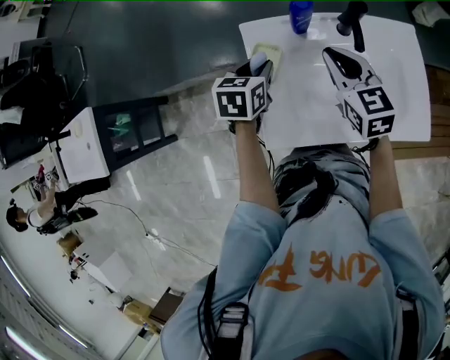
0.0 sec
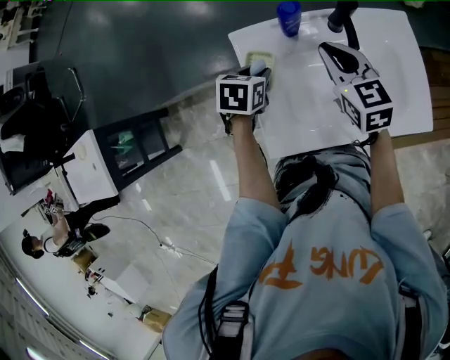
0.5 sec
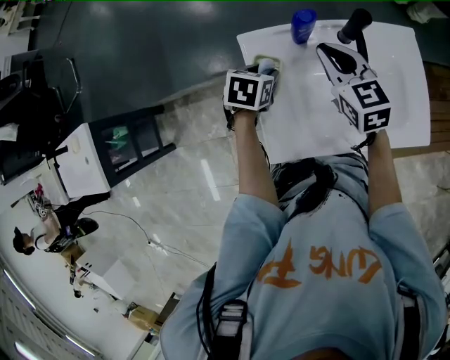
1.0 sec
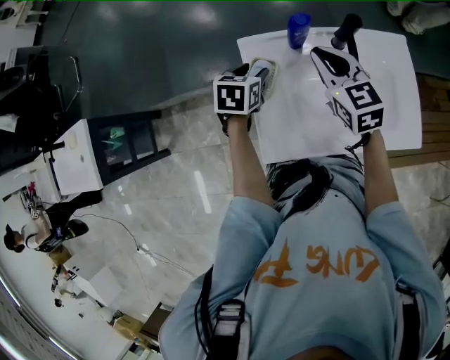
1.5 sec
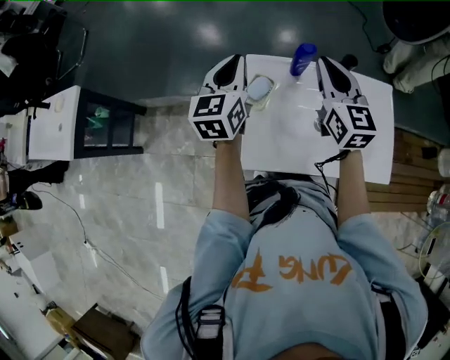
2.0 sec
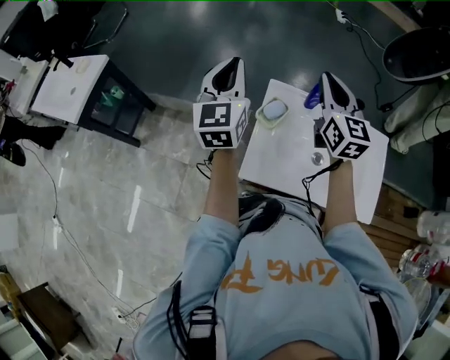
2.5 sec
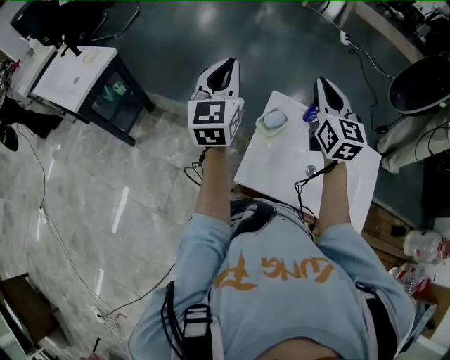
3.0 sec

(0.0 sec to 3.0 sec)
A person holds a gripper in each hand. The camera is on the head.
0.0 sec - 1.5 sec: The left gripper opens its fingers.
1.5 sec - 3.0 sec: The left gripper is displaced upward by about 30 cm, tilts its fingers roughly 50 degrees upward, and closes; the right gripper shifts roughly 15 cm upward, and changes its angle by some 20 degrees.

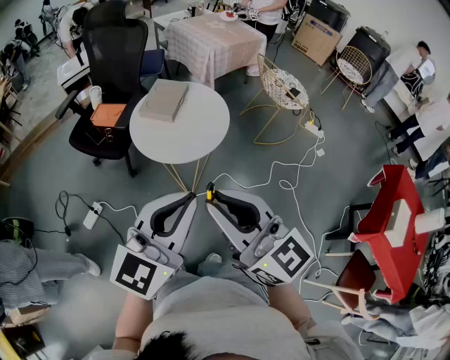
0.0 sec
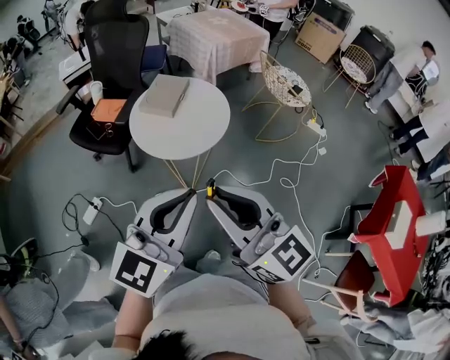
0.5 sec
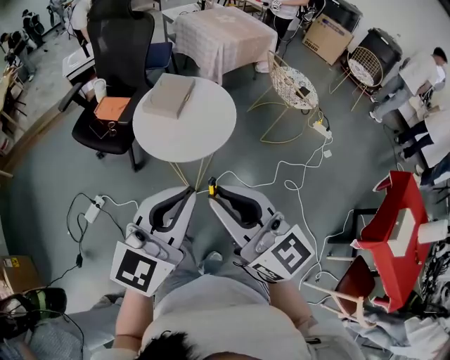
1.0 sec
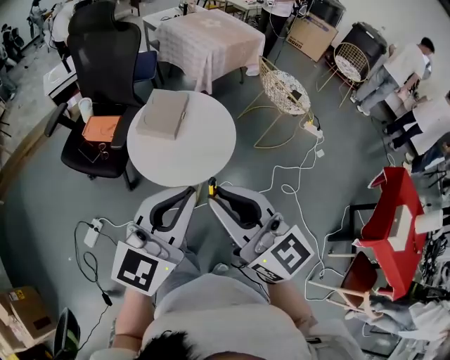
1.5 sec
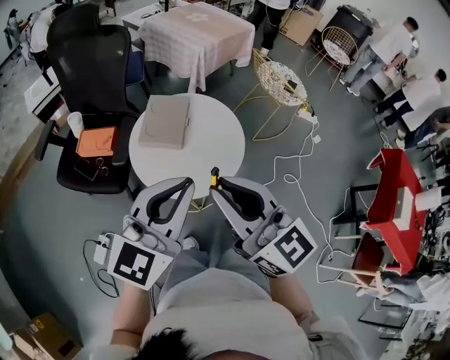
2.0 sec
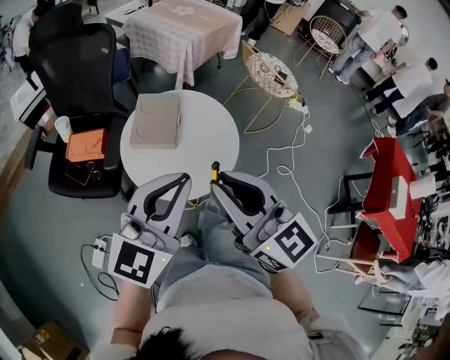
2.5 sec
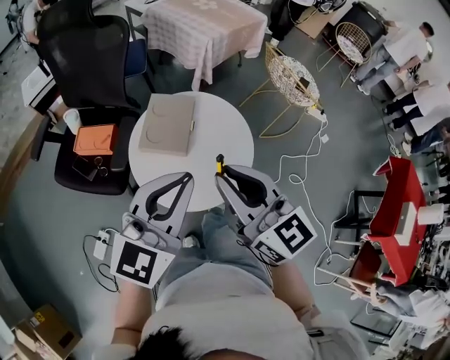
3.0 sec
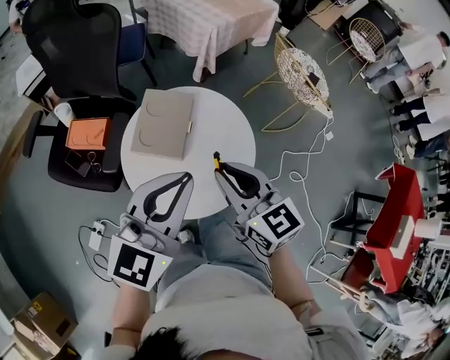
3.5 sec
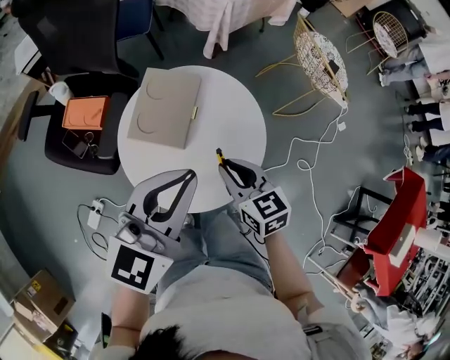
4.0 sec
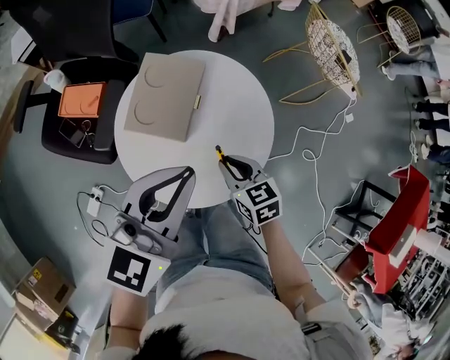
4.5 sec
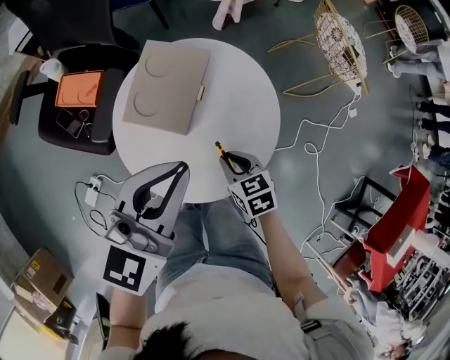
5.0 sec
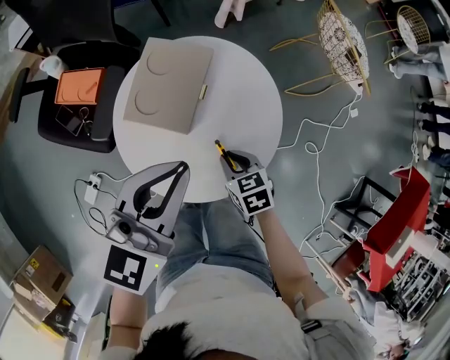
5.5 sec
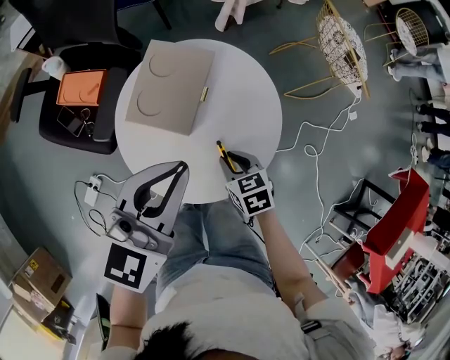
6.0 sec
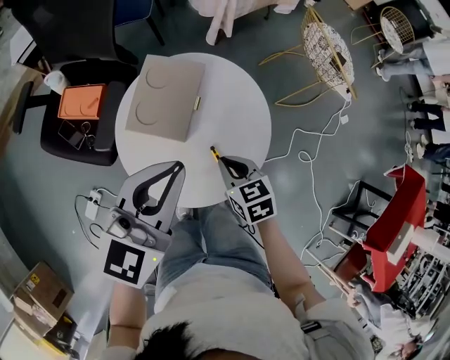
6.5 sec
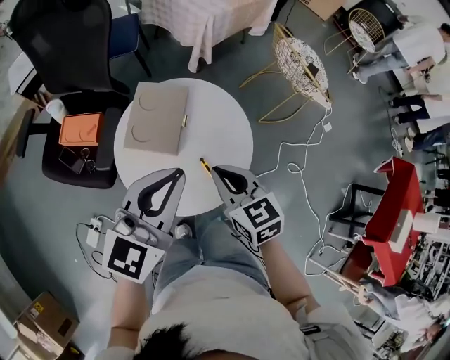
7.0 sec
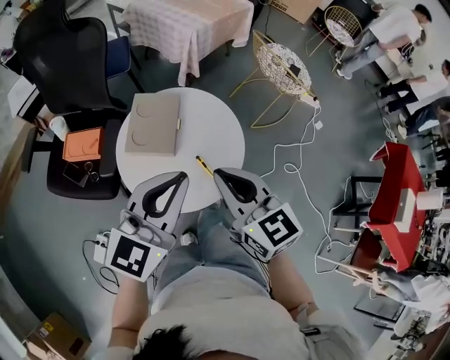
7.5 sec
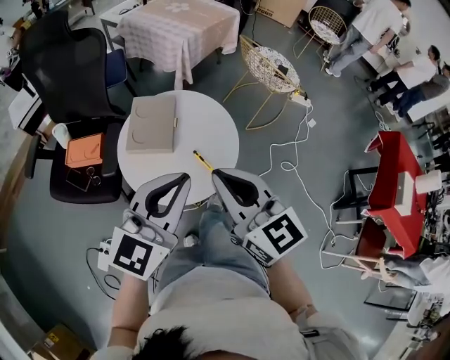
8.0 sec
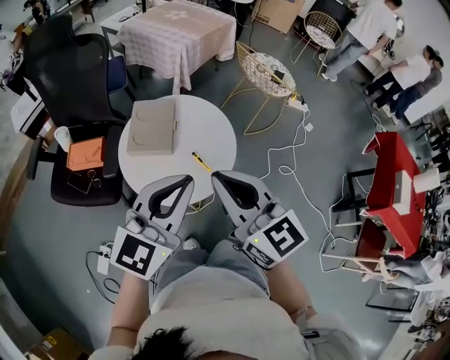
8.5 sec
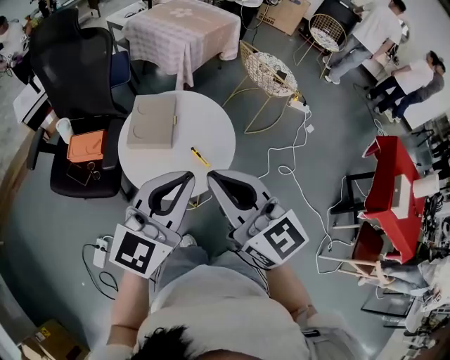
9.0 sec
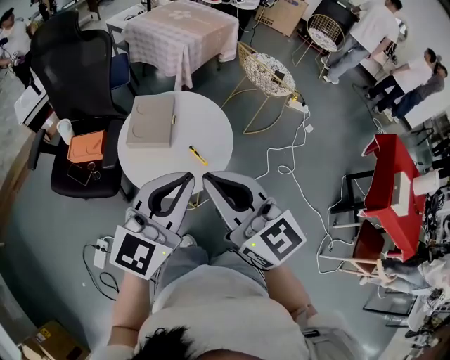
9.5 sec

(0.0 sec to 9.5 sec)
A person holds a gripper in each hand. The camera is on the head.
0.0 sec - 2.0 sec: Both grippers travel together forward and to the left, roughly 25 cm.
2.0 sec - 4.0 sec: The left gripper moves forward and downward, roughly 20 cm. Meanwhile the right gripper travels downward and forward by roughly 35 cm, and tilts its fingers some 30 degrees downward.
4.0 sec - 5.5 sec: The right gripper moves downward, approximately 15 cm, and changes its angle by roughly 20 degrees; the left gripper ends up some 5 cm from where it was.
5.5 sec - 7.5 sec: The right gripper is displaced upward by about 30 cm, and tips its fingers upward by about 40 degrees; the left gripper heads backward and upward, covering some 10 cm.
7.5 sec - 9.5 sec: The right gripper moves backward and upward, some 15 cm. Meanwhile the left gripper goes about 10 cm backward.

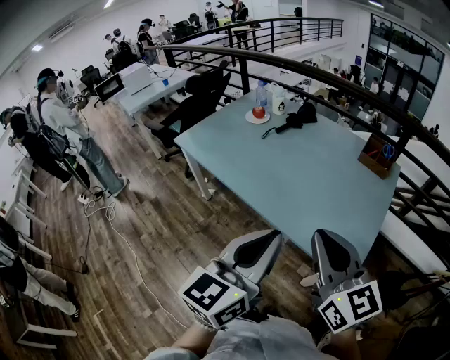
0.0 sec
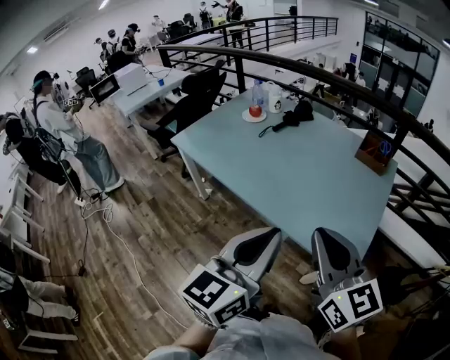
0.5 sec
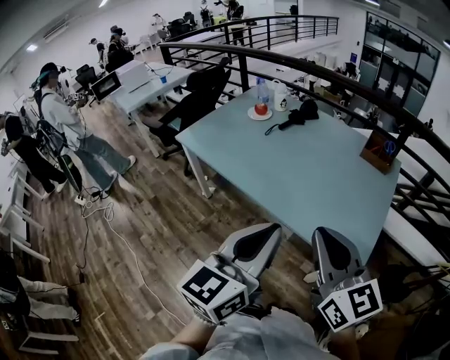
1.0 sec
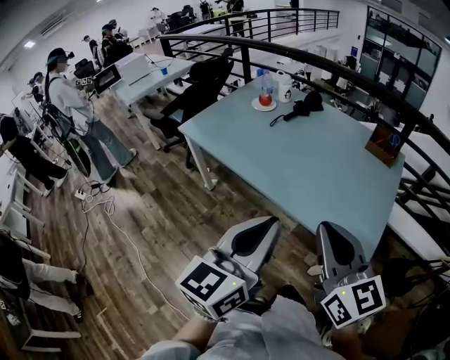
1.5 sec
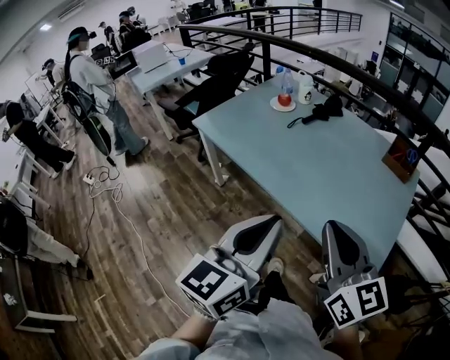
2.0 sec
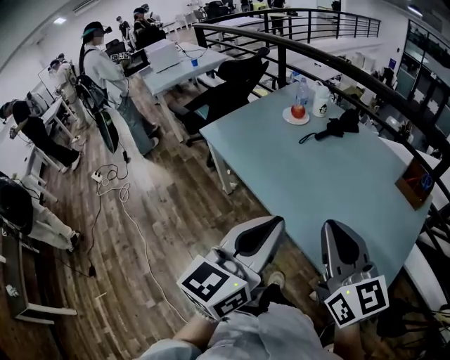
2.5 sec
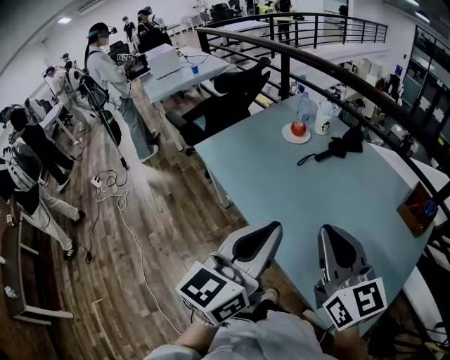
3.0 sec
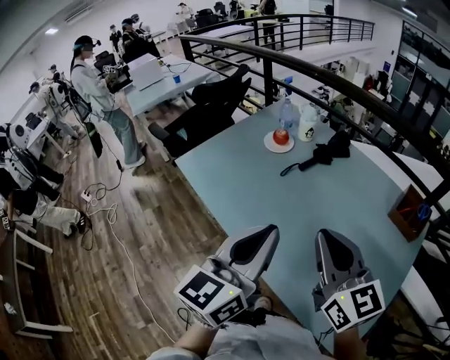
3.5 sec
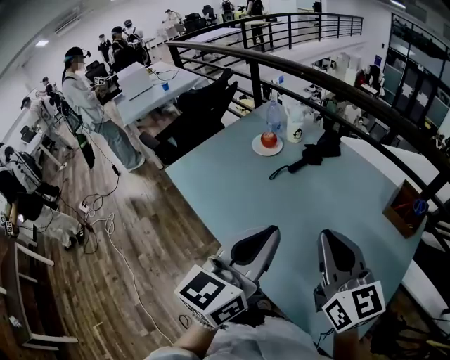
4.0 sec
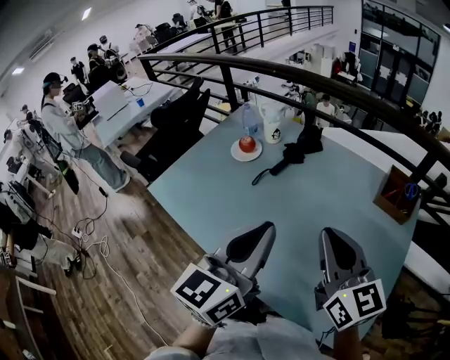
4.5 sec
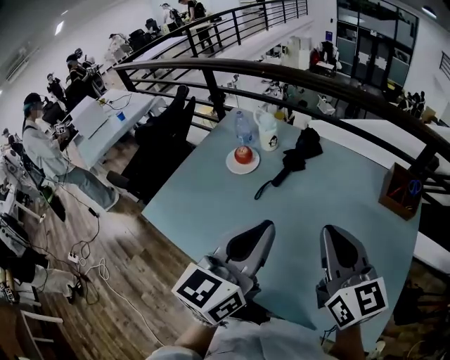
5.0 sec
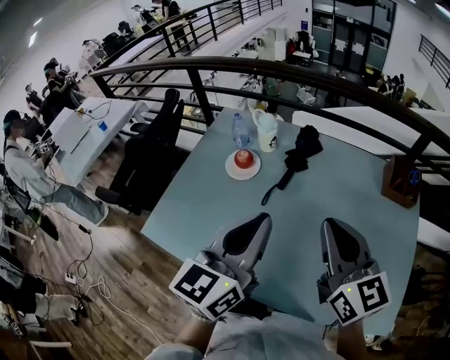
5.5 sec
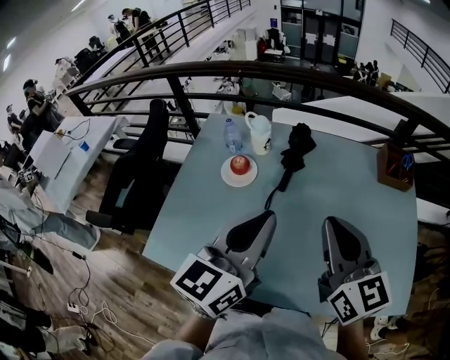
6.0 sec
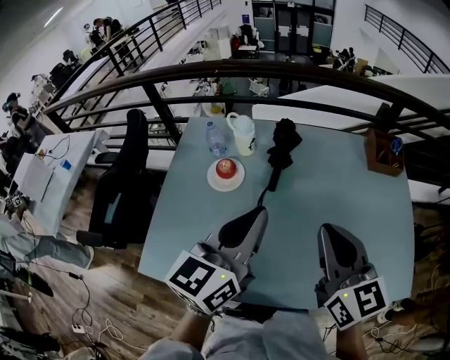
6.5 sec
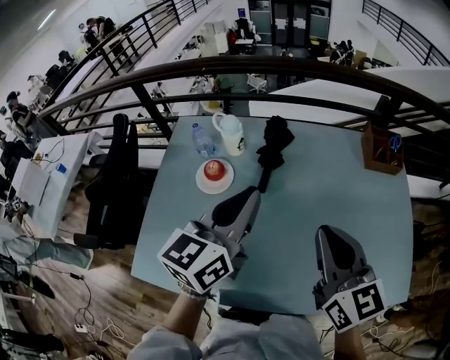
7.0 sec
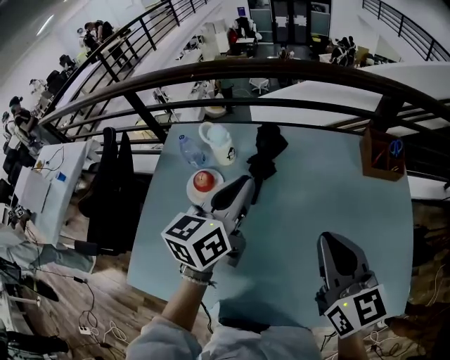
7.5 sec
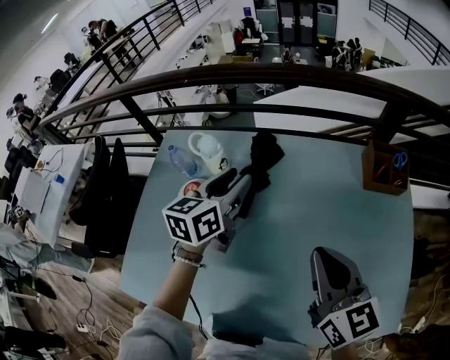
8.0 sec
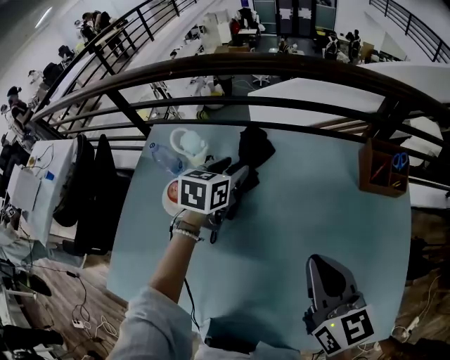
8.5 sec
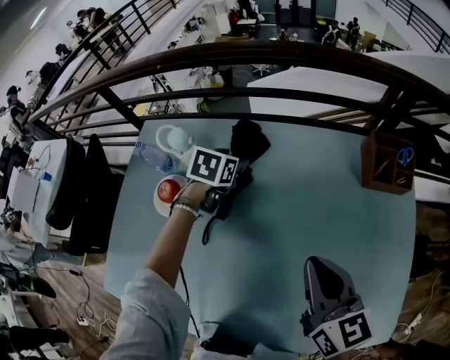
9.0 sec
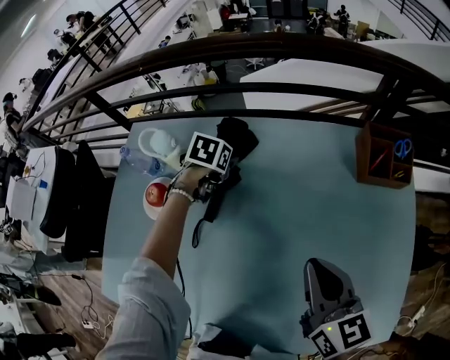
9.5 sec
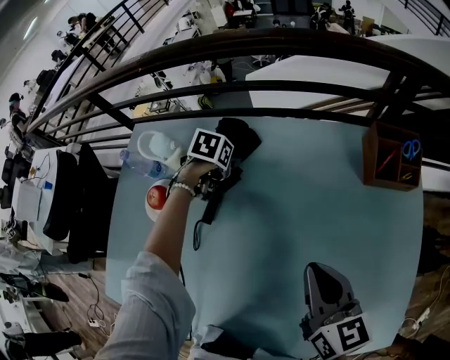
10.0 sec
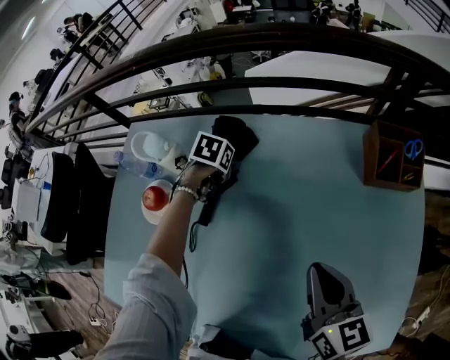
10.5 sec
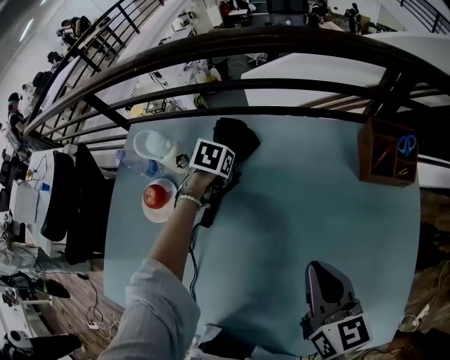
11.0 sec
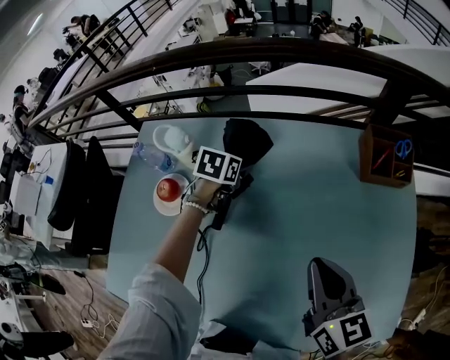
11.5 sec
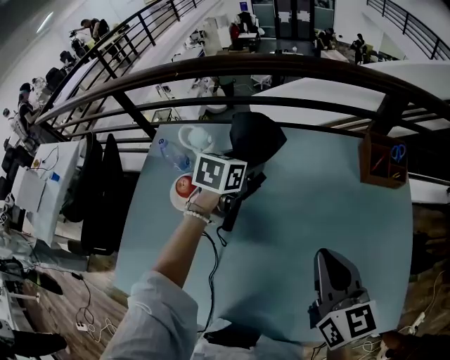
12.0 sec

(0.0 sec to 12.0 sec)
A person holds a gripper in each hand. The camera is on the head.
0.0 sec - 2.0 sec: The grippers both shift to the left by roughly 10 cm.
2.0 sec - 4.0 sec: The two grippers go some 30 cm forward.
4.0 sec - 6.0 sec: The left gripper moves some 25 cm, and swivels some 30 degrees. Meanwhile the right gripper ends up approximately 20 cm from where it was, and turns by about 30 degrees.
6.0 sec - 8.0 sec: The left gripper goes about 30 cm forward and downward, and opens its fingers; the right gripper moves to the right, forward and downward, some 15 cm.
8.0 sec - 10.0 sec: The left gripper heads downward and forward, covering approximately 30 cm, angles its fingers downward, by roughly 50 degrees, and opens up, while the right gripper is displaced downward and to the right by some 15 cm.
10.0 sec - 12.0 sec: The right gripper heads upward and backward, covering about 10 cm, while the left gripper heads upward and backward, covering roughly 20 cm, and swivels approximately 30 degrees.

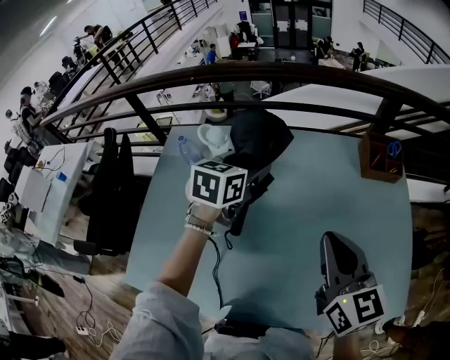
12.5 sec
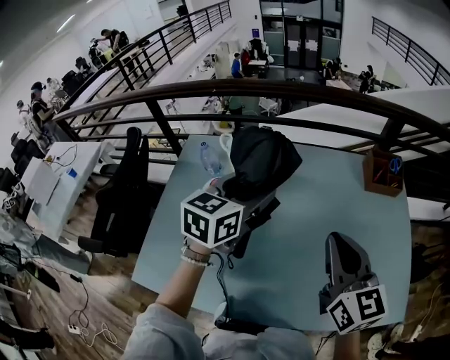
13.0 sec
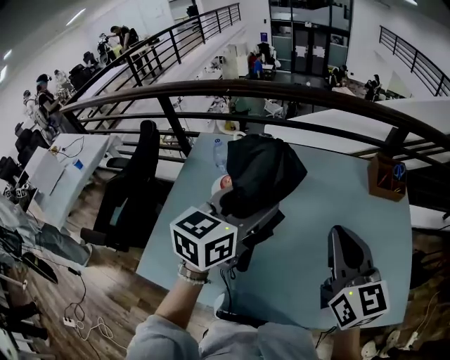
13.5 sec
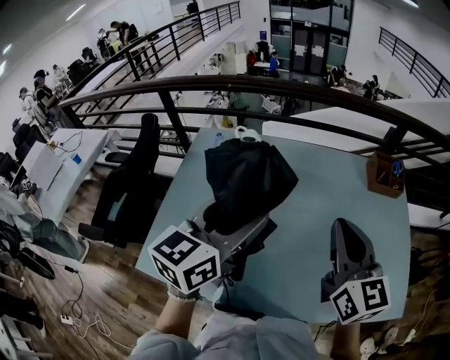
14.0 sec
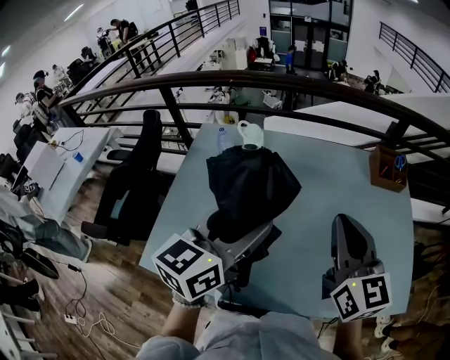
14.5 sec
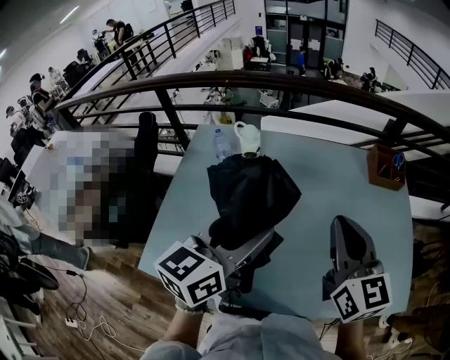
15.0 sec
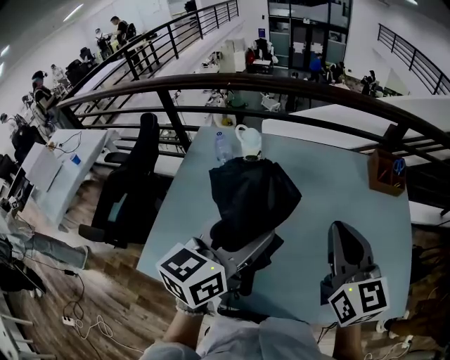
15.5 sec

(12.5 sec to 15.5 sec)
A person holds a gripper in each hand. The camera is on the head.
12.5 sec - 14.0 sec: The right gripper goes some 10 cm upward and to the left, while the left gripper is displaced backward and upward by approximately 25 cm, and turns by about 20 degrees.
14.0 sec - 15.5 sec: The grippers make only small movements.
